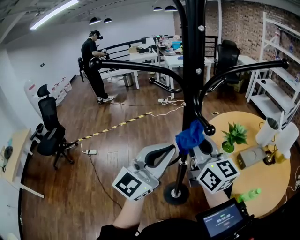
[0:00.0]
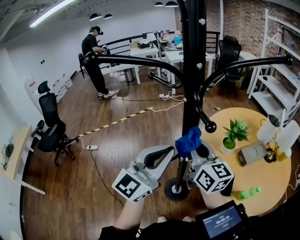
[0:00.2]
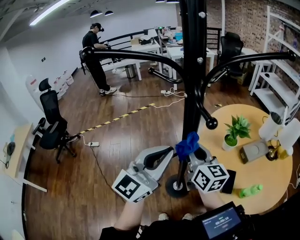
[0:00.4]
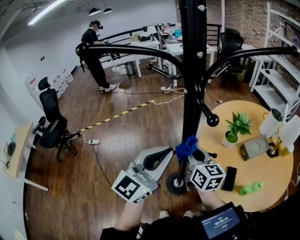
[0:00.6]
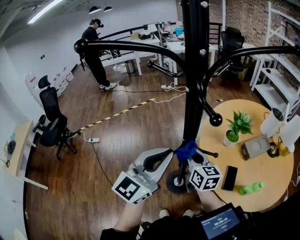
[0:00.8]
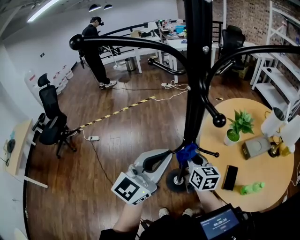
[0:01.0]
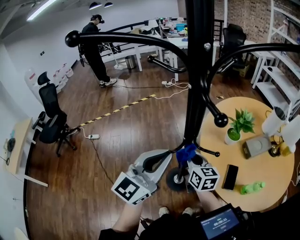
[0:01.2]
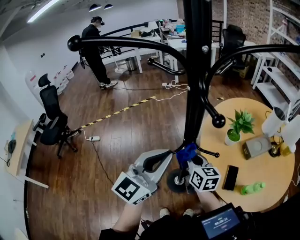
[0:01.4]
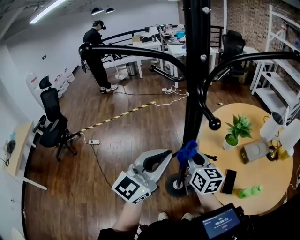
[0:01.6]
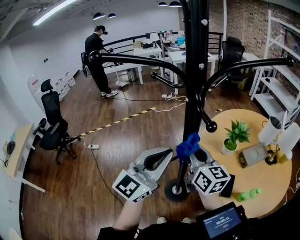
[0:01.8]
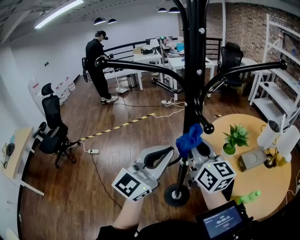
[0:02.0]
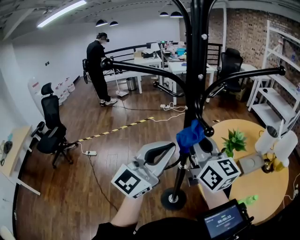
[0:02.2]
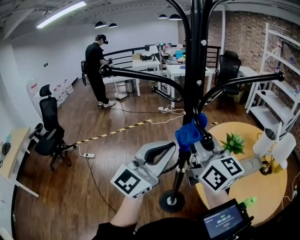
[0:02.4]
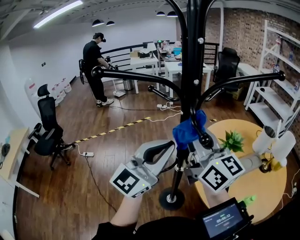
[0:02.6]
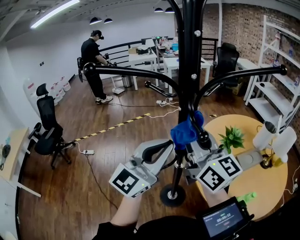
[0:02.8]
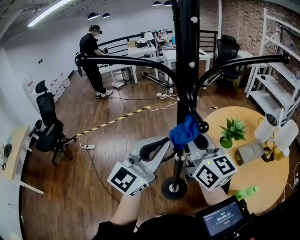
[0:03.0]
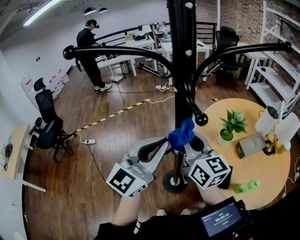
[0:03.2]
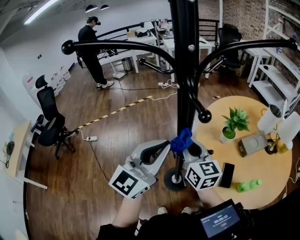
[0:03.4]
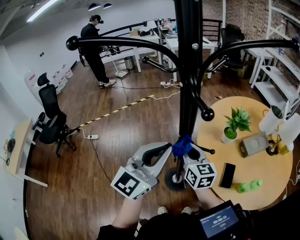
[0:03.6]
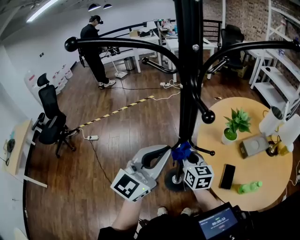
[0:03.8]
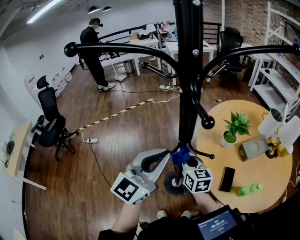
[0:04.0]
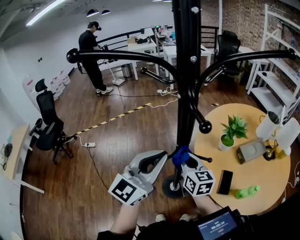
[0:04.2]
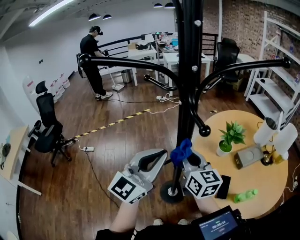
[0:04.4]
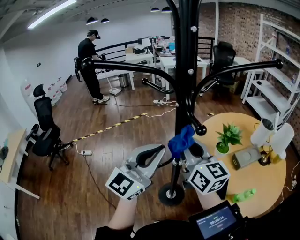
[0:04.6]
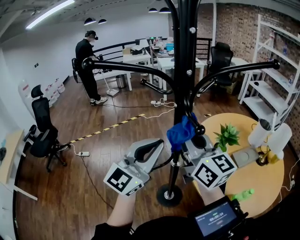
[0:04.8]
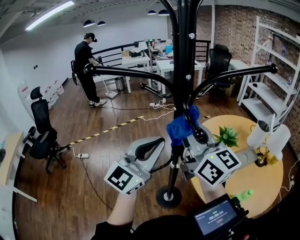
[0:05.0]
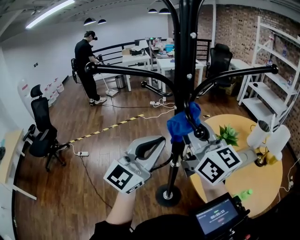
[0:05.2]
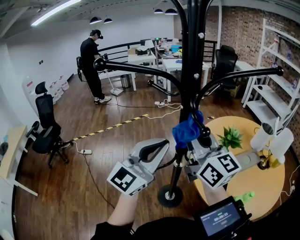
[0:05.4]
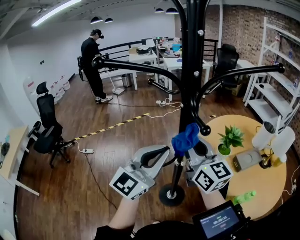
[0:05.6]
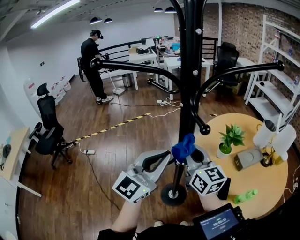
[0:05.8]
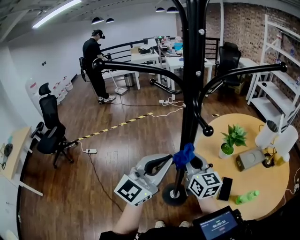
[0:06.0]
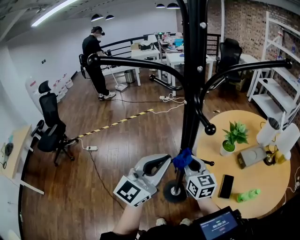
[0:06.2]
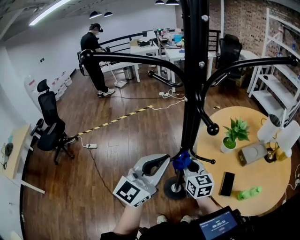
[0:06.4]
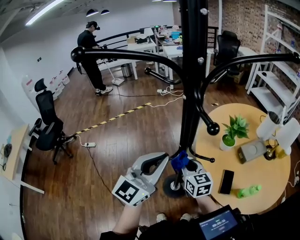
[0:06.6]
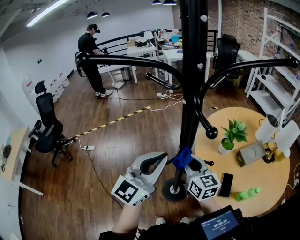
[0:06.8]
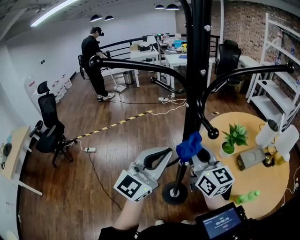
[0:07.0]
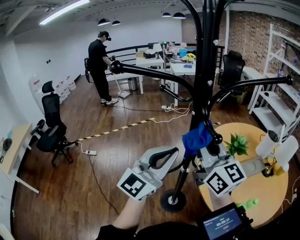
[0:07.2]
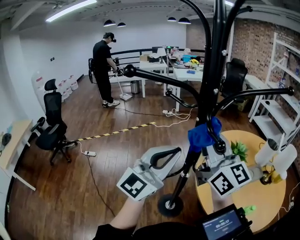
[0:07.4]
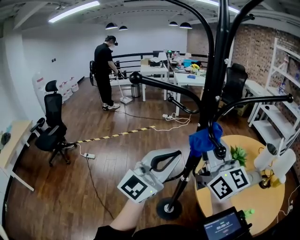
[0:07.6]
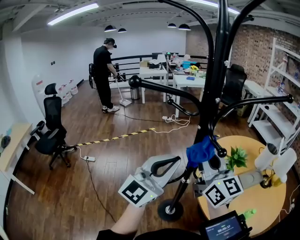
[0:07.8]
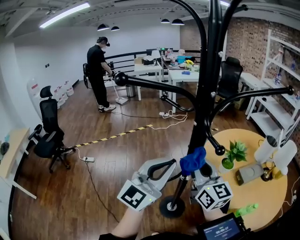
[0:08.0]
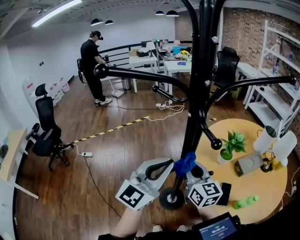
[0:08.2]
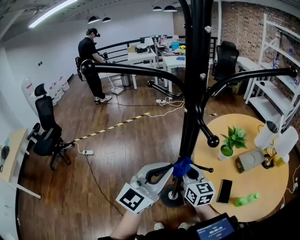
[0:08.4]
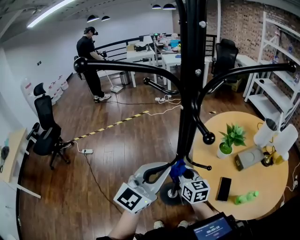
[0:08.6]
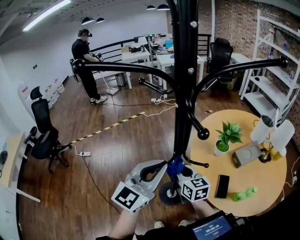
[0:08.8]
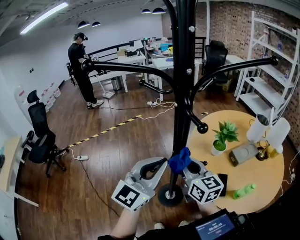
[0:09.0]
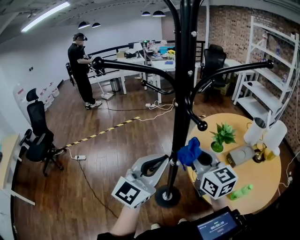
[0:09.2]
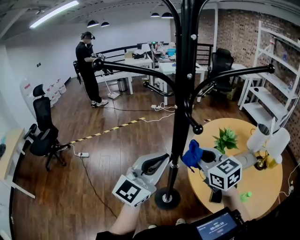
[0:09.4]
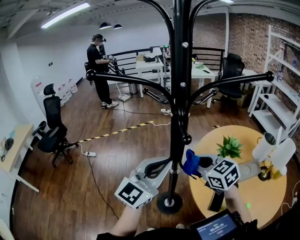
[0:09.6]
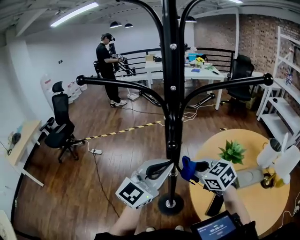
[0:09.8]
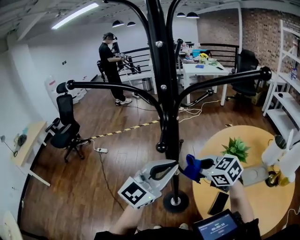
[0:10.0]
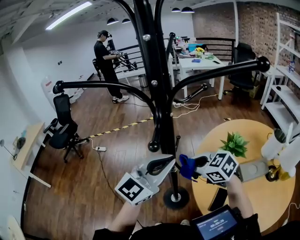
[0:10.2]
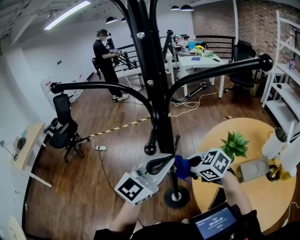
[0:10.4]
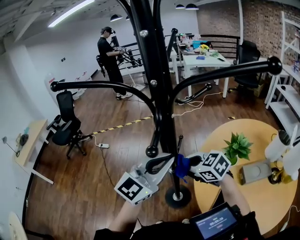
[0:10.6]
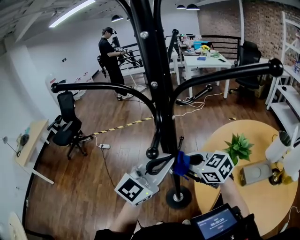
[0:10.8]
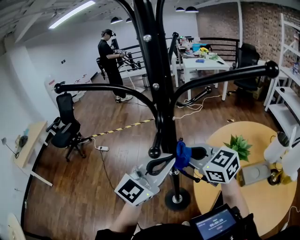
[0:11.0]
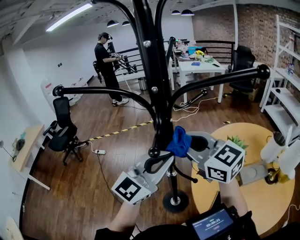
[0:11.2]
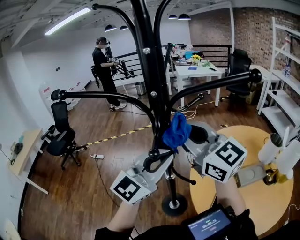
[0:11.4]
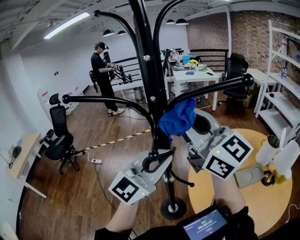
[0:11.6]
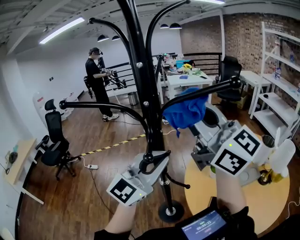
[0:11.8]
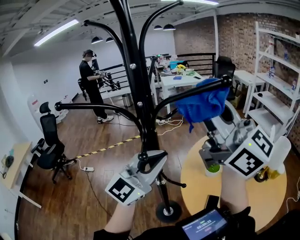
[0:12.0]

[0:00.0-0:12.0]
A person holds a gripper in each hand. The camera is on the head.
0:00.0 to 0:01.6: The left gripper shifts by about 5 cm. Meanwhile the right gripper travels downward by approximately 15 cm, and rotates approximately 20 degrees.
0:01.6 to 0:03.0: The right gripper goes about 20 cm upward, and swivels approximately 20 degrees, while the left gripper goes about 5 cm upward.
0:03.0 to 0:04.4: The right gripper heads downward, covering about 10 cm.
0:04.4 to 0:06.0: The right gripper travels upward and back again, about 20 cm each way.
0:06.0 to 0:07.6: The left gripper shifts roughly 10 cm upward; the right gripper travels upward by some 20 cm, and rotates approximately 20 degrees.
0:07.6 to 0:09.0: The right gripper is displaced downward by some 20 cm, and swivels roughly 30 degrees. The left gripper heads downward, covering approximately 10 cm.
0:09.0 to 0:10.4: The left gripper changes place by roughly 10 cm, while the right gripper heads downward, covering roughly 5 cm, and points its fingers about 30 degrees further downward.
0:10.4 to 0:12.0: The right gripper shifts roughly 40 cm upward, and tips its fingers upward by about 70 degrees, while the left gripper travels upward by roughly 10 cm.

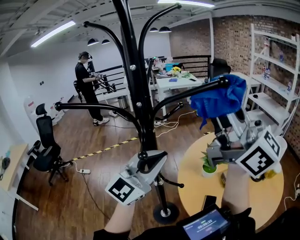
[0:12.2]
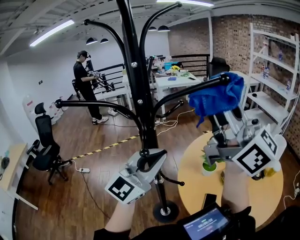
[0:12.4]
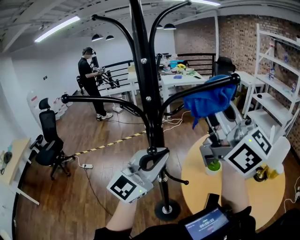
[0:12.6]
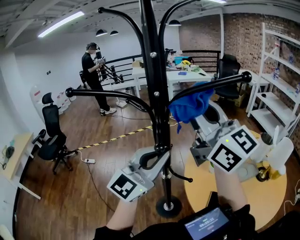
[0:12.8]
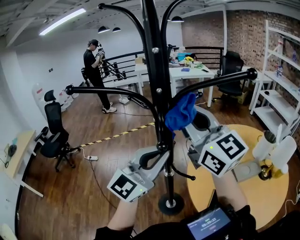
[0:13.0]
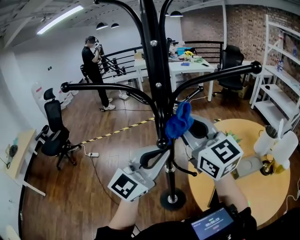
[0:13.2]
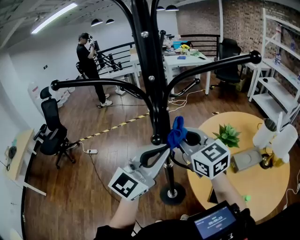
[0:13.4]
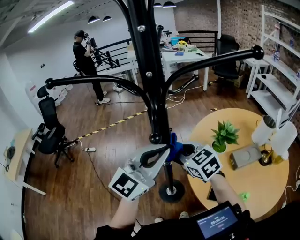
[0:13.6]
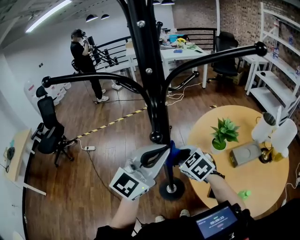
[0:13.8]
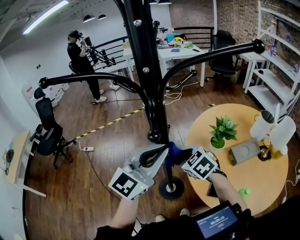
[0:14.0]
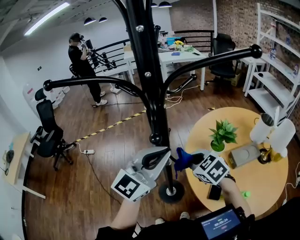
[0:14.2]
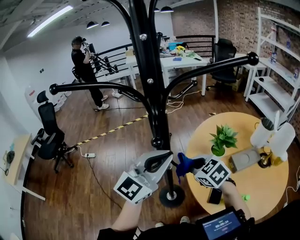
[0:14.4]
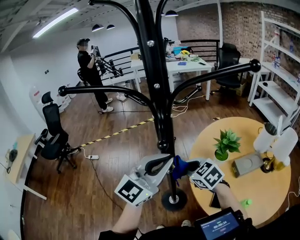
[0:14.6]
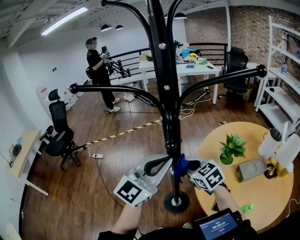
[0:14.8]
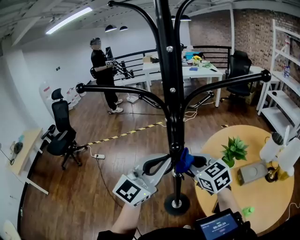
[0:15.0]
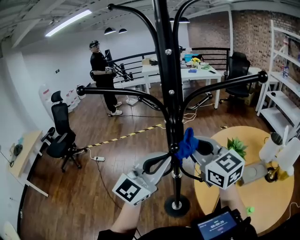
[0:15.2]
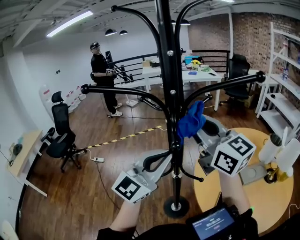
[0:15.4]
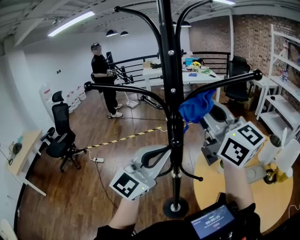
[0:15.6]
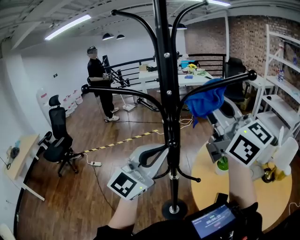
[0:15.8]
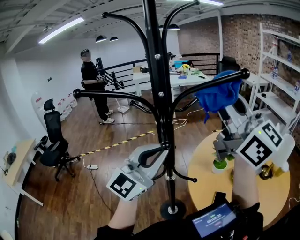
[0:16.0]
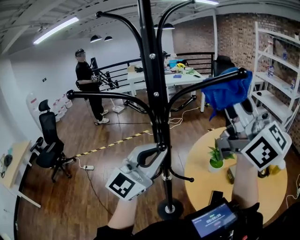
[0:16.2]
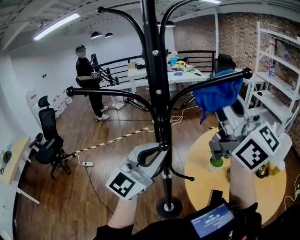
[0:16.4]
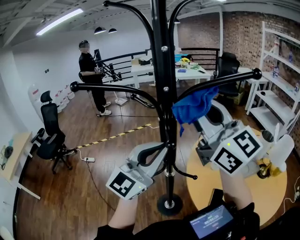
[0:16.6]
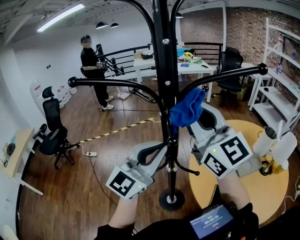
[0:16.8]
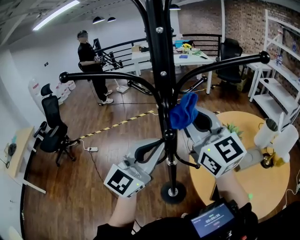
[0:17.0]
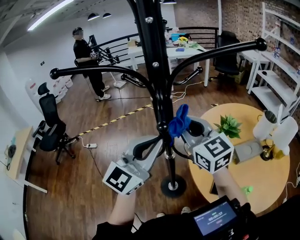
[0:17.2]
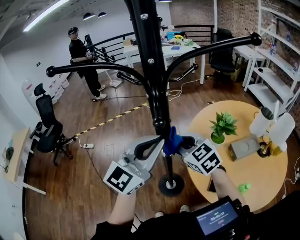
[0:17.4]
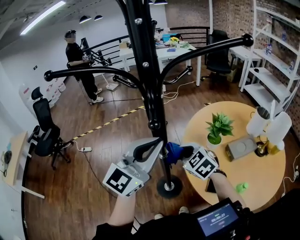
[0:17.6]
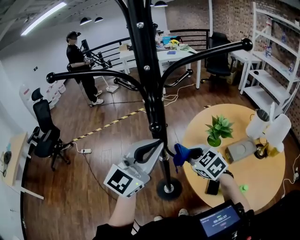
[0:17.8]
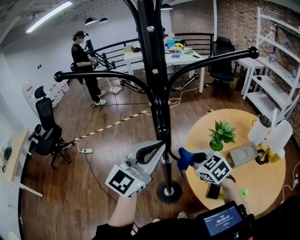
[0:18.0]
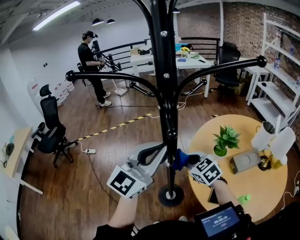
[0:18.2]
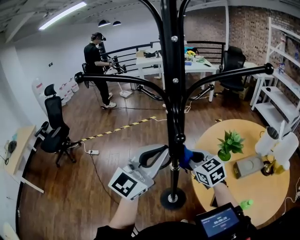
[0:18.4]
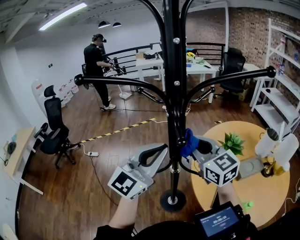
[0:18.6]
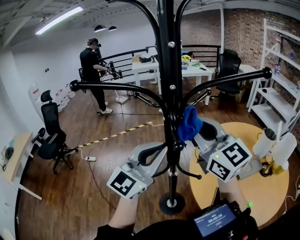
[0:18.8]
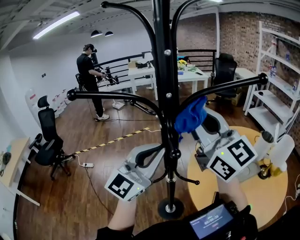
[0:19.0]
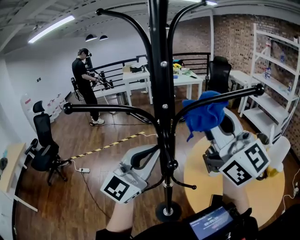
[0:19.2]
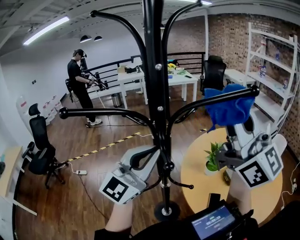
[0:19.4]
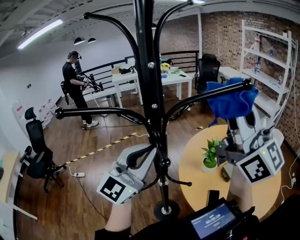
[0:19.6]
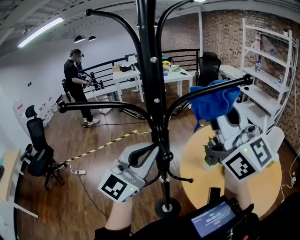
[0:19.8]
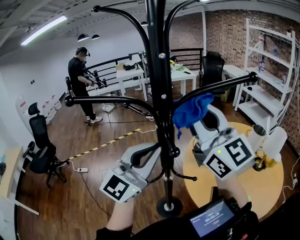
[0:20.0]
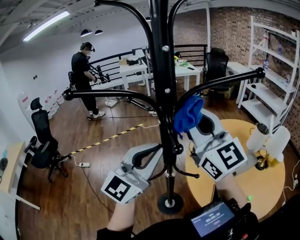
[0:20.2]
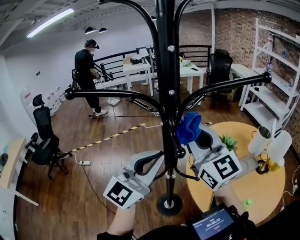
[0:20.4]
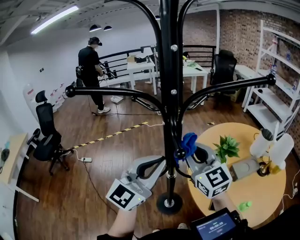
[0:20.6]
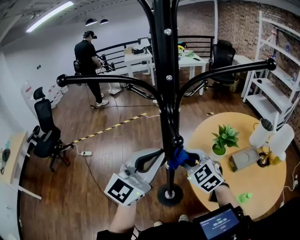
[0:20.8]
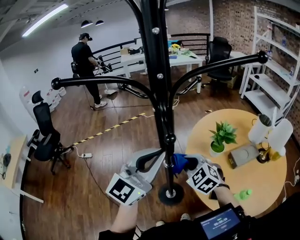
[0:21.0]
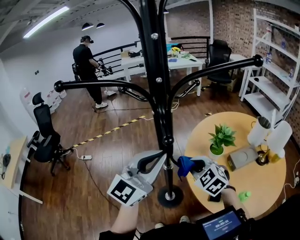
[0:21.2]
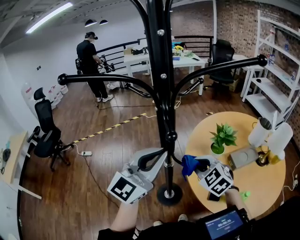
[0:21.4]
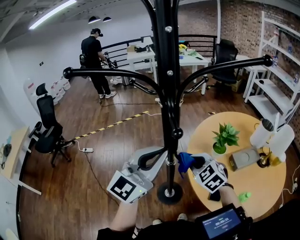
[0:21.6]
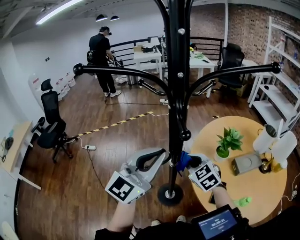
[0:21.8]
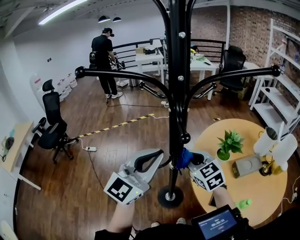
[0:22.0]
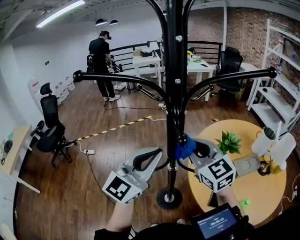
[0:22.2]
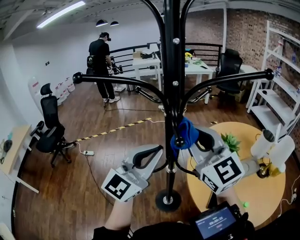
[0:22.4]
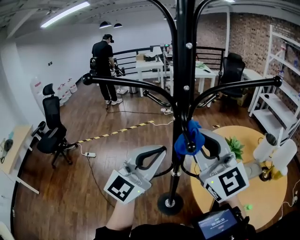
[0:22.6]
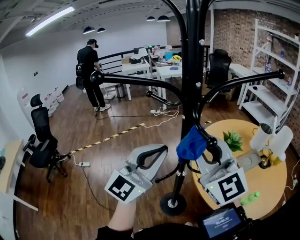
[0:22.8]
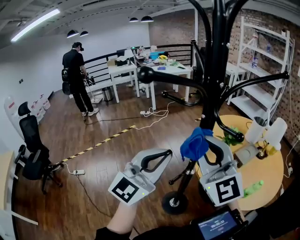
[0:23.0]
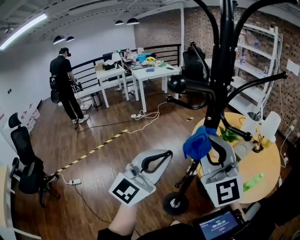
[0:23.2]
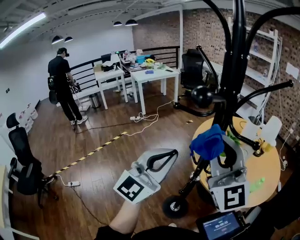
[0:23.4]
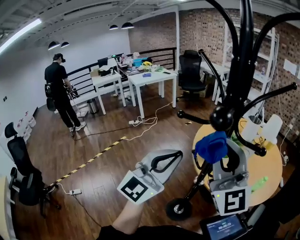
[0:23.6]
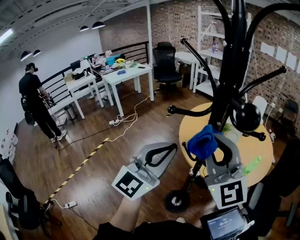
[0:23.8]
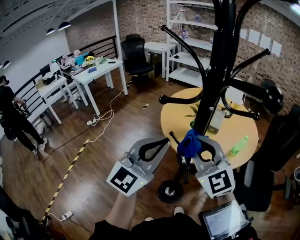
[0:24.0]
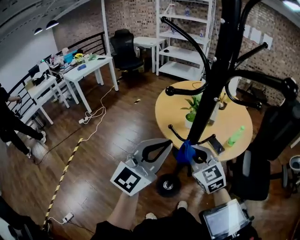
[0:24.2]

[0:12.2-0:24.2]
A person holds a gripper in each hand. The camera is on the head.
0:12.2 to 0:13.8: The right gripper heads downward, covering about 40 cm, and tips its fingers downward by about 80 degrees. Meanwhile the left gripper is displaced downward by some 5 cm.
0:13.8 to 0:15.2: The right gripper goes some 20 cm upward, and angles its fingers upward, by approximately 40 degrees.
0:15.2 to 0:16.6: The right gripper is displaced upward by about 15 cm, and swivels about 20 degrees.
0:16.6 to 0:18.2: The right gripper moves downward, roughly 40 cm, and tilts its fingers some 60 degrees downward.
0:18.2 to 0:19.8: The left gripper is displaced upward by about 5 cm. Meanwhile the right gripper heads upward, covering about 40 cm, and angles its fingers upward, by some 70 degrees.
0:19.8 to 0:21.2: The left gripper goes about 5 cm downward; the right gripper heads downward, covering roughly 40 cm, and tilts its fingers roughly 70 degrees downward.
0:21.2 to 0:22.6: The right gripper is displaced upward by about 25 cm, and angles its fingers upward, by roughly 50 degrees, while the left gripper travels to the left by about 5 cm.
0:22.6 to 0:24.2: The right gripper heads downward, covering about 25 cm, and angles its fingers downward, by about 30 degrees, while the left gripper ends up approximately 15 cm from where it was, and turns by roughly 60 degrees.
